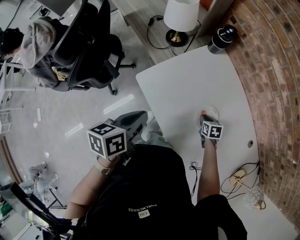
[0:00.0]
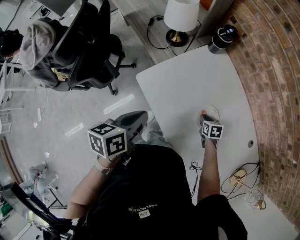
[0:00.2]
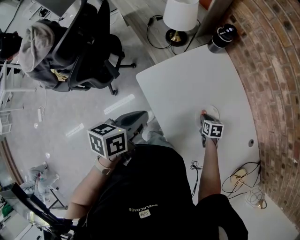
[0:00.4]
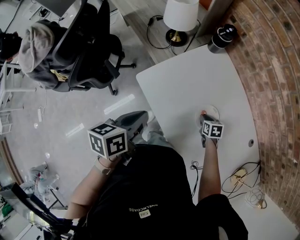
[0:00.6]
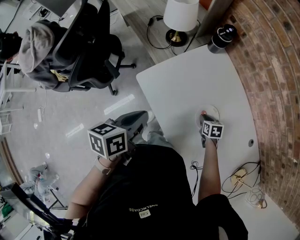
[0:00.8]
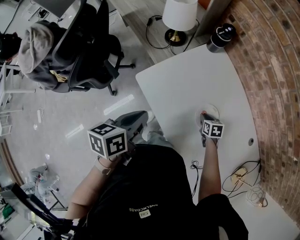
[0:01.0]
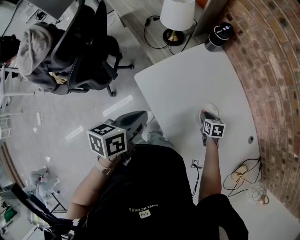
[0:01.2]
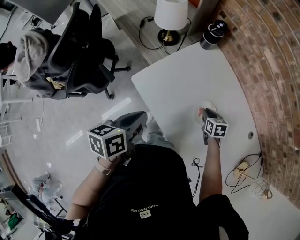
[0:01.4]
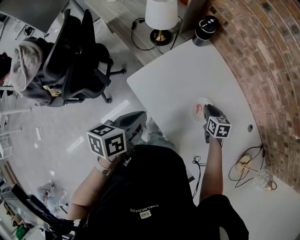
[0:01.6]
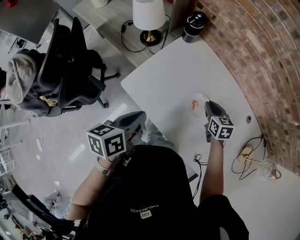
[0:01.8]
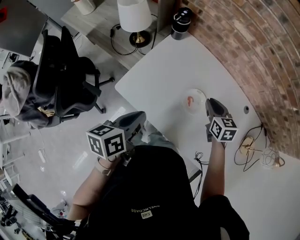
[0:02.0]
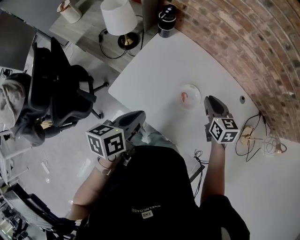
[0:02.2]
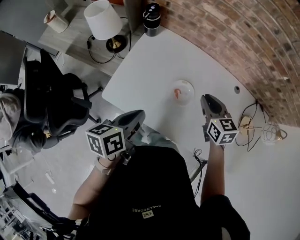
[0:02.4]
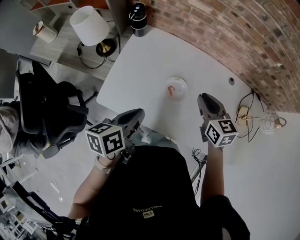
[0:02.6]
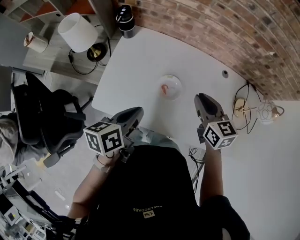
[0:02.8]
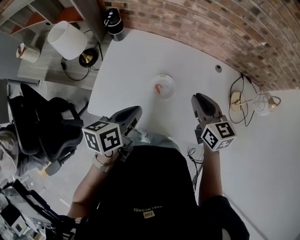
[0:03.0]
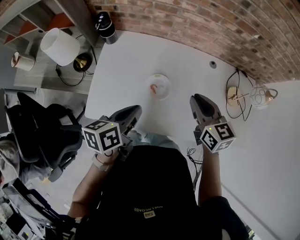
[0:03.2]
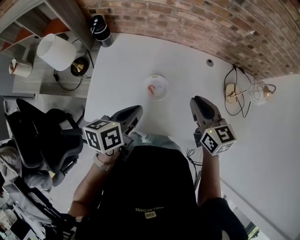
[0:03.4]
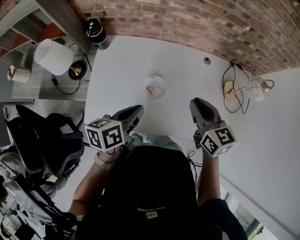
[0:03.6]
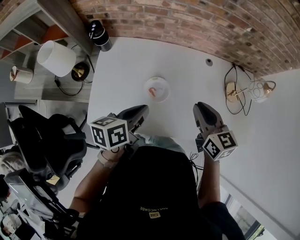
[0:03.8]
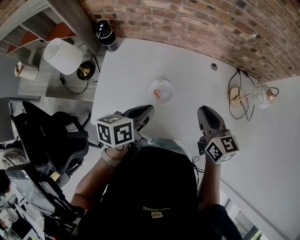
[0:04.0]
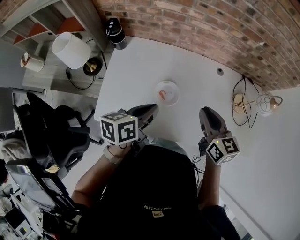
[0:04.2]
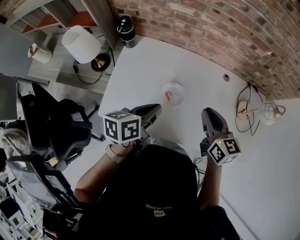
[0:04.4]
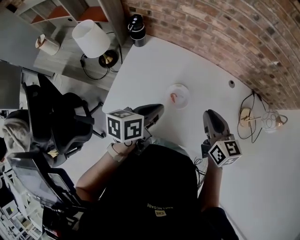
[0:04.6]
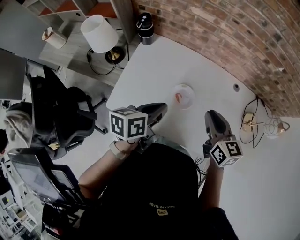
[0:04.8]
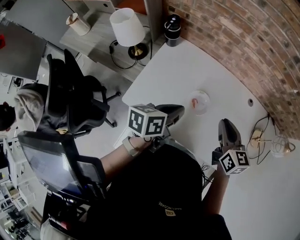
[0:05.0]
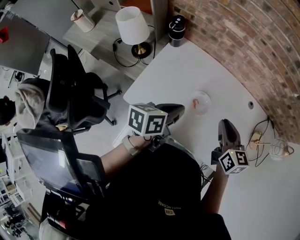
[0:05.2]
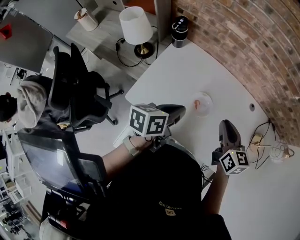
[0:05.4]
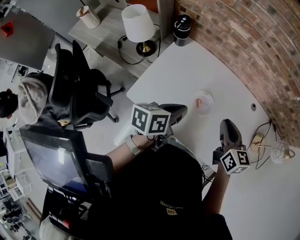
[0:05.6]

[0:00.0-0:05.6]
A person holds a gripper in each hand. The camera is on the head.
0:00.0 to 0:01.4: The right gripper goes approximately 5 cm upward.
0:01.4 to 0:02.8: The left gripper shifts by some 15 cm, and turns by approximately 30 degrees; the right gripper shifts approximately 25 cm upward, and swivels about 40 degrees.
0:02.8 to 0:04.2: The left gripper heads forward and to the right, covering approximately 5 cm. The right gripper moves roughly 5 cm.
0:04.2 to 0:05.6: The right gripper goes roughly 5 cm to the left.

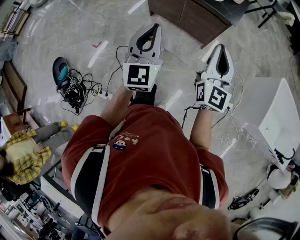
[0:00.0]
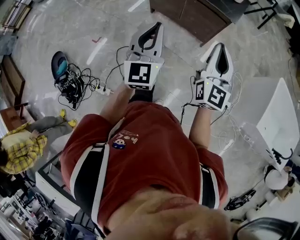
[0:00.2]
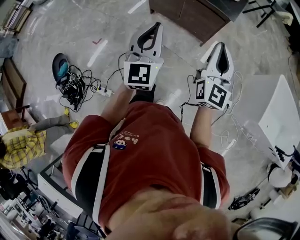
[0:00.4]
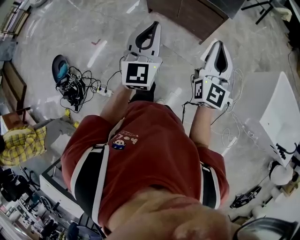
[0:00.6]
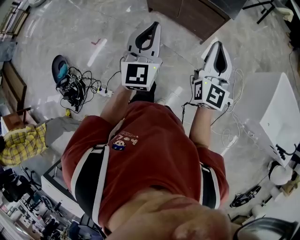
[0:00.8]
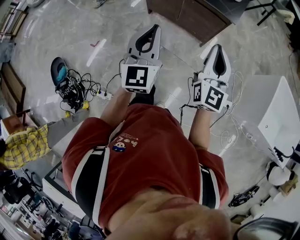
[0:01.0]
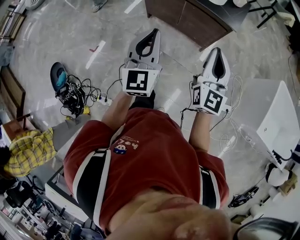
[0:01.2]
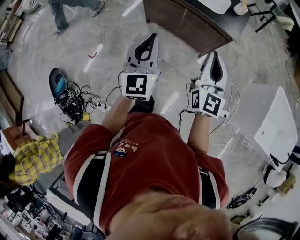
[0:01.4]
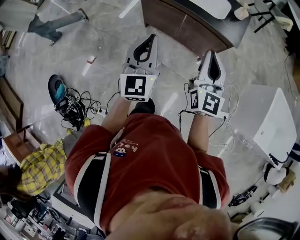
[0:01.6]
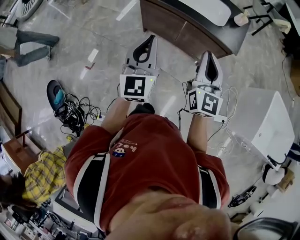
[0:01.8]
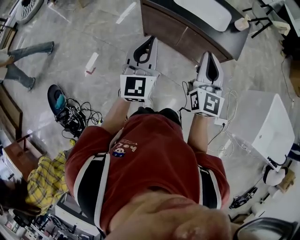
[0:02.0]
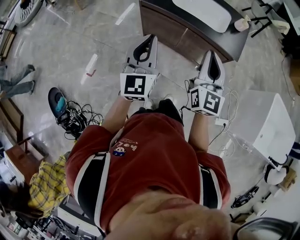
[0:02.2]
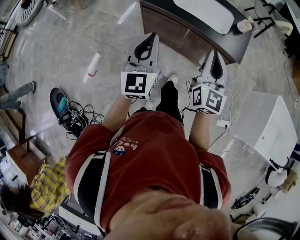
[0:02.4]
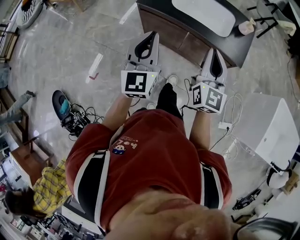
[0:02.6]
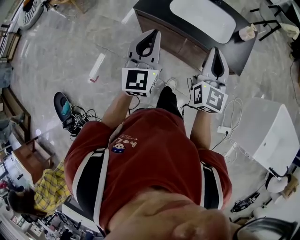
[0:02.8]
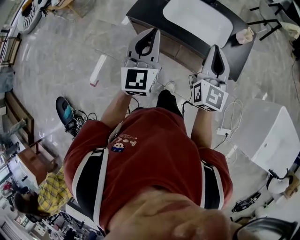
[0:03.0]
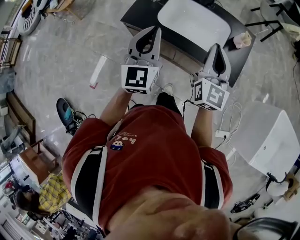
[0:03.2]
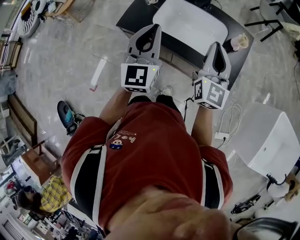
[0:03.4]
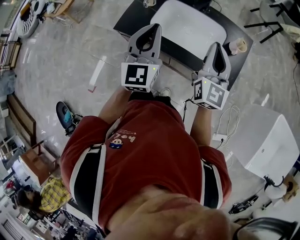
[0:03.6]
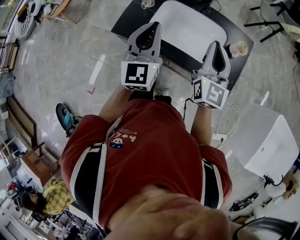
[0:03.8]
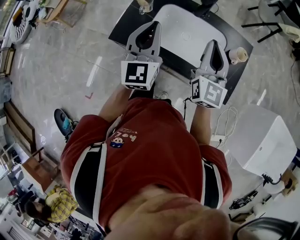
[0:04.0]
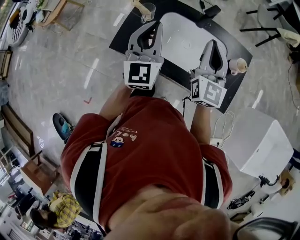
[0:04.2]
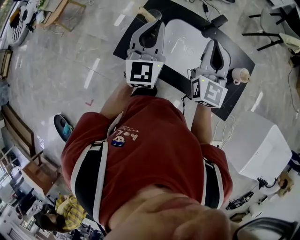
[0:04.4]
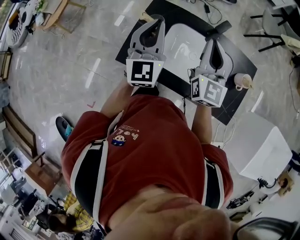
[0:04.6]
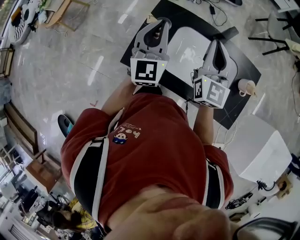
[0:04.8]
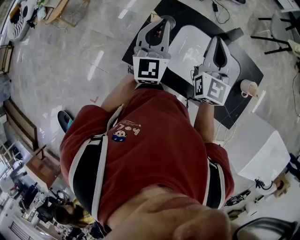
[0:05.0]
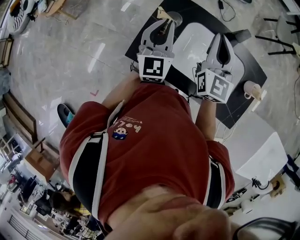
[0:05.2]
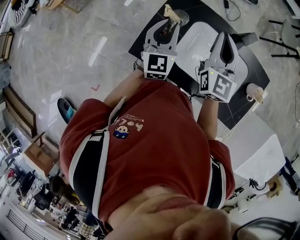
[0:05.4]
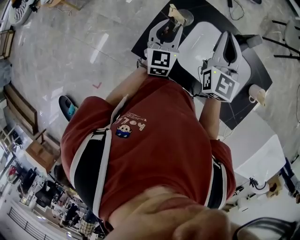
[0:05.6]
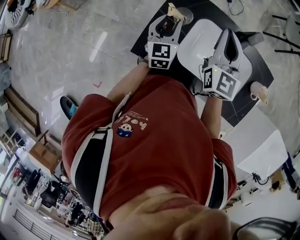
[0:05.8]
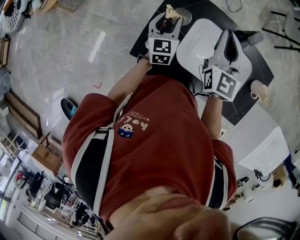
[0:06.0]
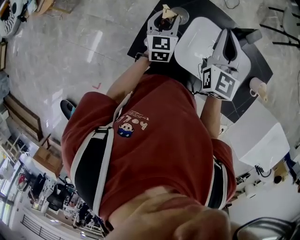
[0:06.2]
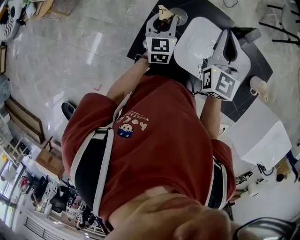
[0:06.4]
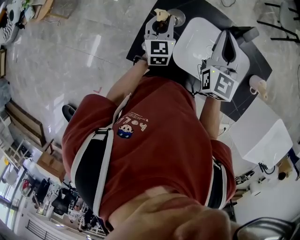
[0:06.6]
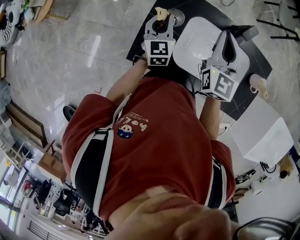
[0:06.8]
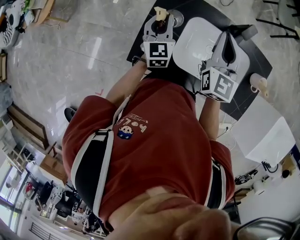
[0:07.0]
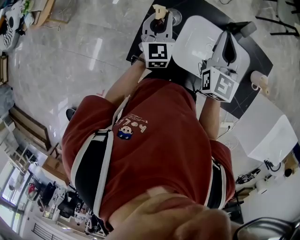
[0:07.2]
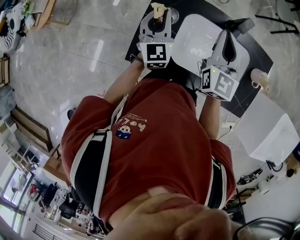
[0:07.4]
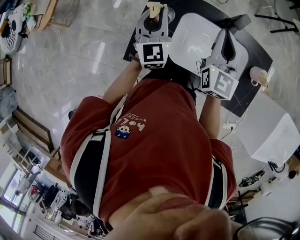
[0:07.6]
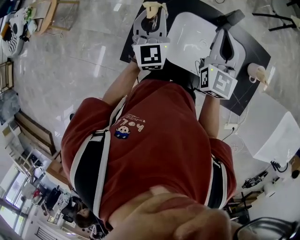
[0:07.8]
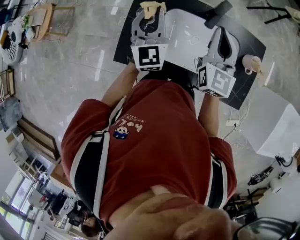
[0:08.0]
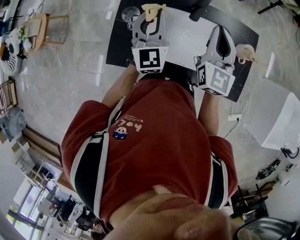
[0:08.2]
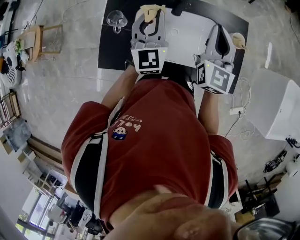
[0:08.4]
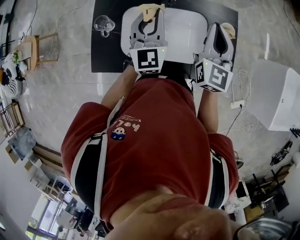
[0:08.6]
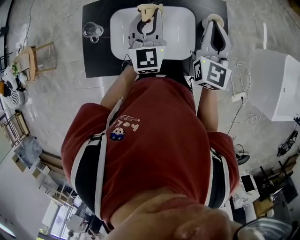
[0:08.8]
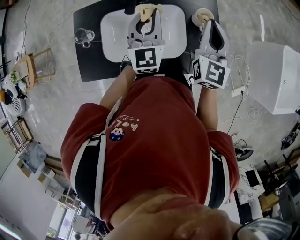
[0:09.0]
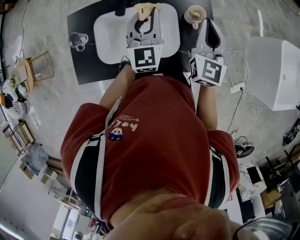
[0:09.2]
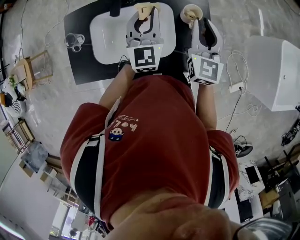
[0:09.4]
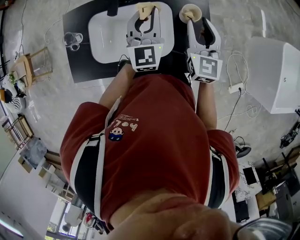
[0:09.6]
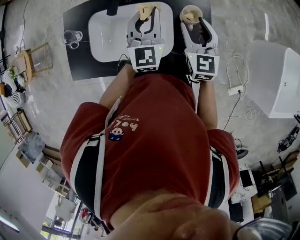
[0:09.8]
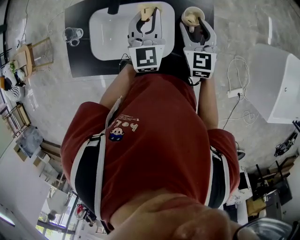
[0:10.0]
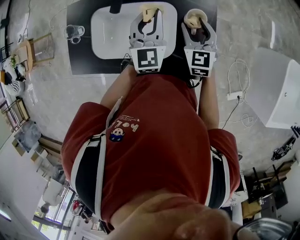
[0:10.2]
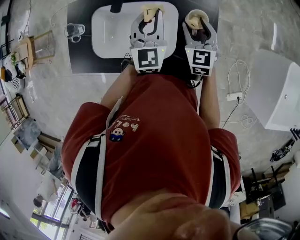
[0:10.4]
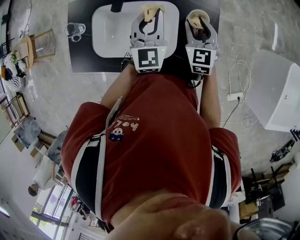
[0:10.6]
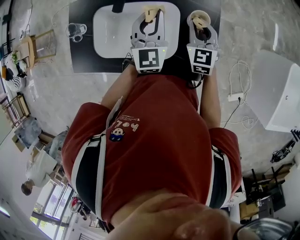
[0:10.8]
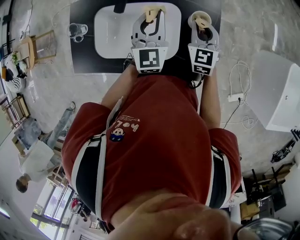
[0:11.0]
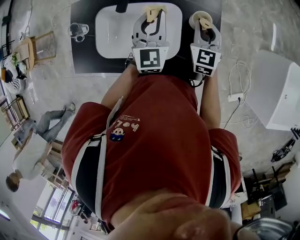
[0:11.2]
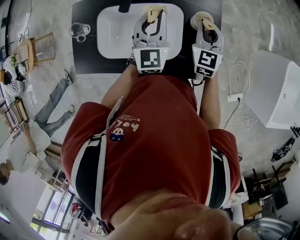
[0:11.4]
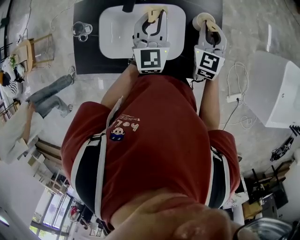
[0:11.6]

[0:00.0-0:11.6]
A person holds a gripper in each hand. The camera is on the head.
0:00.0 to 0:01.4: Both grippers move forward, approximately 10 cm.
0:01.4 to 0:02.8: Both grippers move forward, roughly 25 cm.
0:02.8 to 0:04.4: Both grippers travel together forward, some 35 cm.
0:04.4 to 0:05.8: The left gripper moves downward and forward, roughly 20 cm, turns by about 20 degrees, and opens its fingers. The right gripper shifts approximately 15 cm forward, to the left and downward.
0:05.8 to 0:07.2: The left gripper closes up.
0:07.2 to 0:08.8: Both grippers travel together to the right, about 30 cm. The left gripper changes its angle by about 20 degrees.
0:08.8 to 0:10.2: The left gripper goes roughly 10 cm to the right and downward. Meanwhile the right gripper travels downward by approximately 15 cm, swivels some 30 degrees, and opens up.
0:10.2 to 0:11.6: The right gripper closes up.

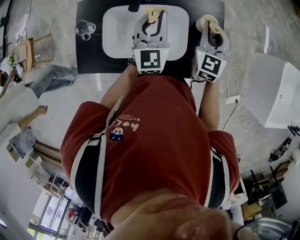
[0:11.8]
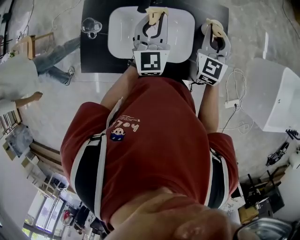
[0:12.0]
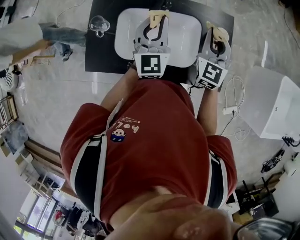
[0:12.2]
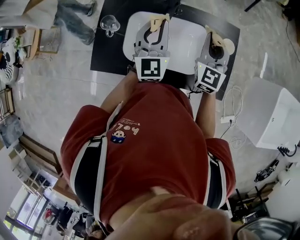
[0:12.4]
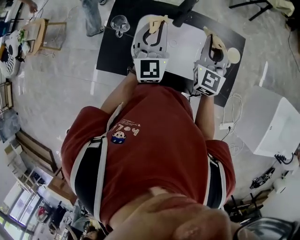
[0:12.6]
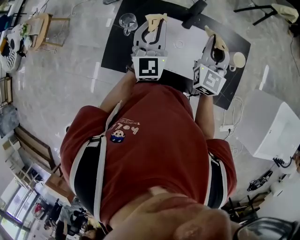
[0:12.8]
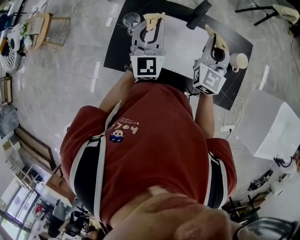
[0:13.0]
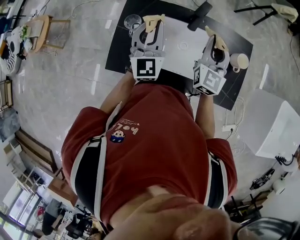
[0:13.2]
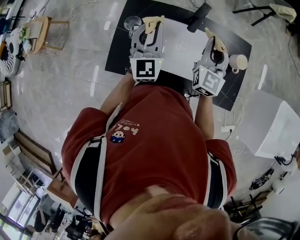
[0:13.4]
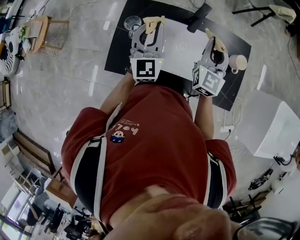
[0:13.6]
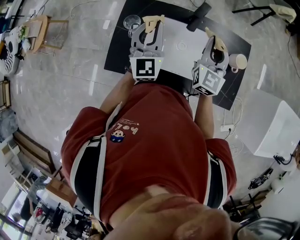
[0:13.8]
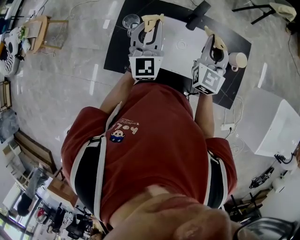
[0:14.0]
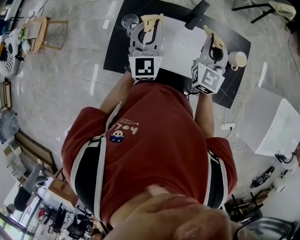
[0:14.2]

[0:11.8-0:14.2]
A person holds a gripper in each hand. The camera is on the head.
0:11.8 to 0:13.0: Both grippers move to the left, about 20 cm.
0:13.0 to 0:14.2: Neither gripper changes place.

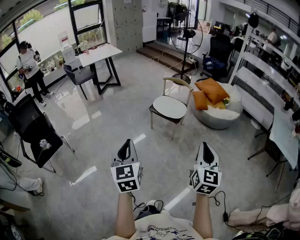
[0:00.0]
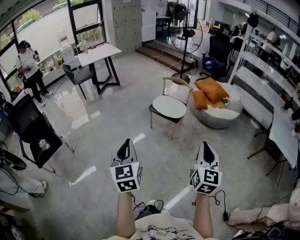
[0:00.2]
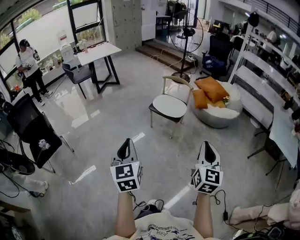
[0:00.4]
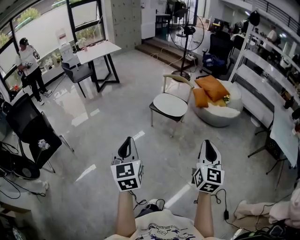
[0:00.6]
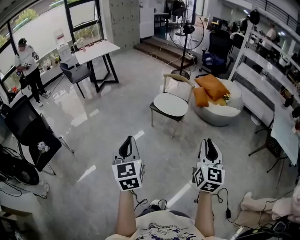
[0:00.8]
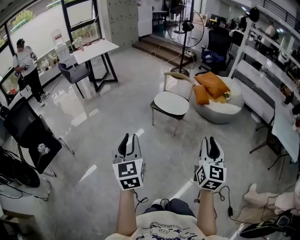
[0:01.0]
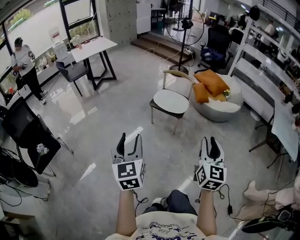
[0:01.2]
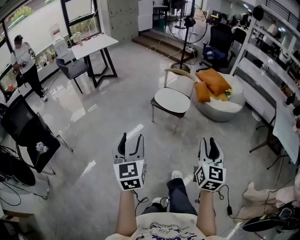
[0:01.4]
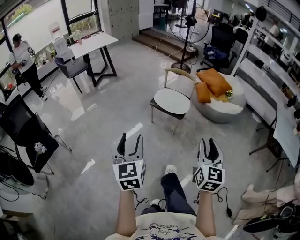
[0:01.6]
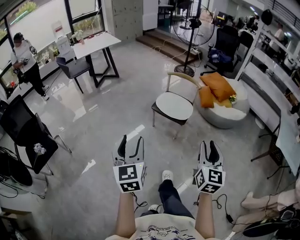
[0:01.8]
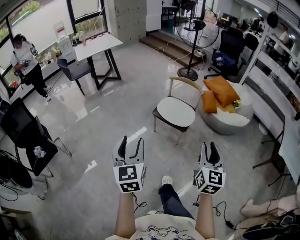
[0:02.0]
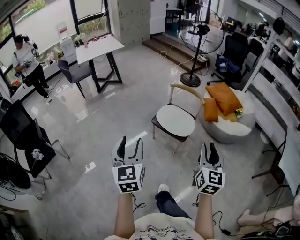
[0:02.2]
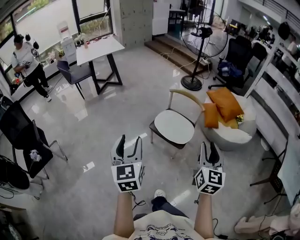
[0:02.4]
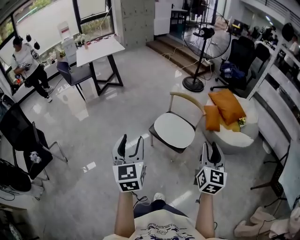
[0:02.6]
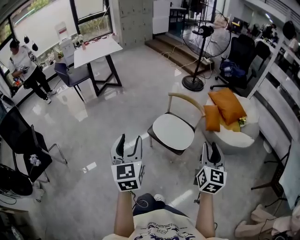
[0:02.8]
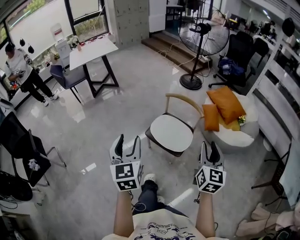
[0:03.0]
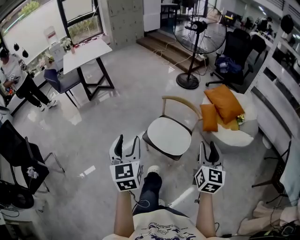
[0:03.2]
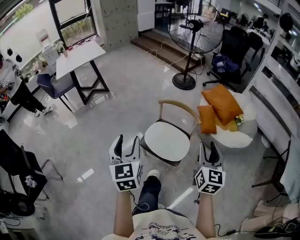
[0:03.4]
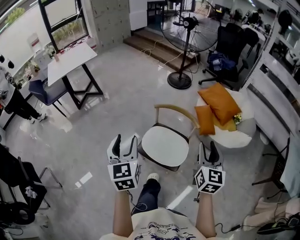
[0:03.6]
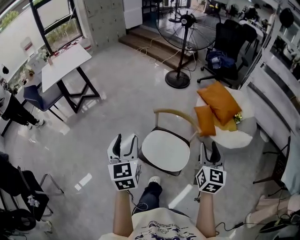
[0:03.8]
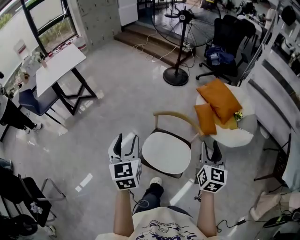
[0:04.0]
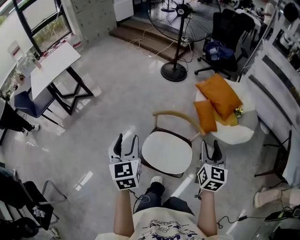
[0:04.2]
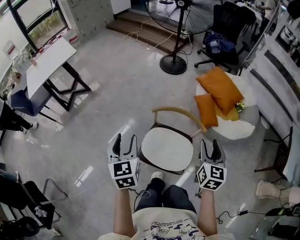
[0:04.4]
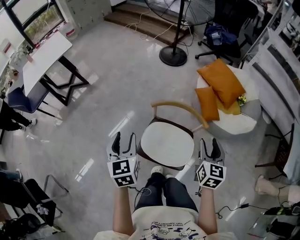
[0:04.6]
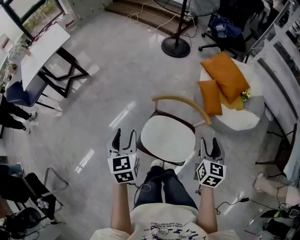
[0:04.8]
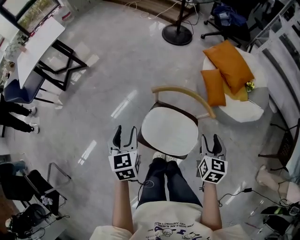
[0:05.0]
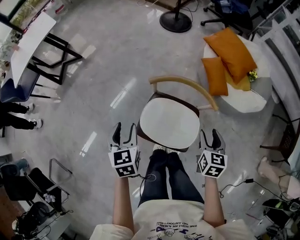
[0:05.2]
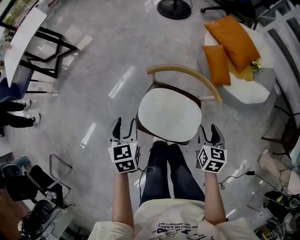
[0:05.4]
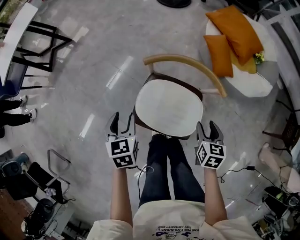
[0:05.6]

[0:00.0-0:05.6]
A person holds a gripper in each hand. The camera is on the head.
0:00.0 to 0:01.4: The two grippers go approximately 10 cm forward and to the left. The left gripper opens up. Meanwhile the right gripper opens.
0:01.4 to 0:02.8: Both grippers are carried forward, roughly 50 cm.
0:02.8 to 0:04.2: Both grippers are carried forward, approximately 40 cm.
0:04.2 to 0:05.6: The grippers both shift downward by approximately 35 cm. The right gripper tilts its fingers approximately 30 degrees downward. Meanwhile the left gripper turns by about 30 degrees.
